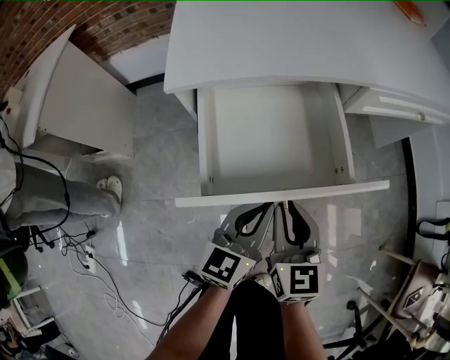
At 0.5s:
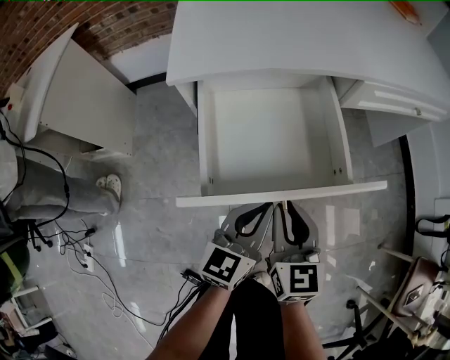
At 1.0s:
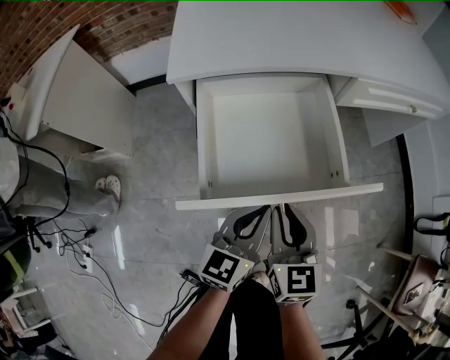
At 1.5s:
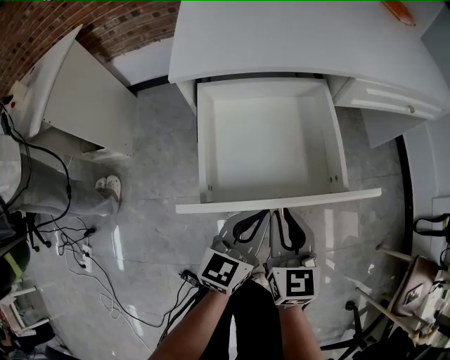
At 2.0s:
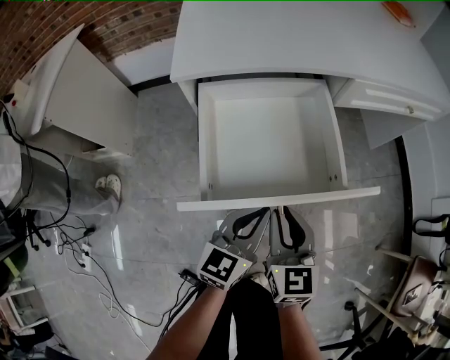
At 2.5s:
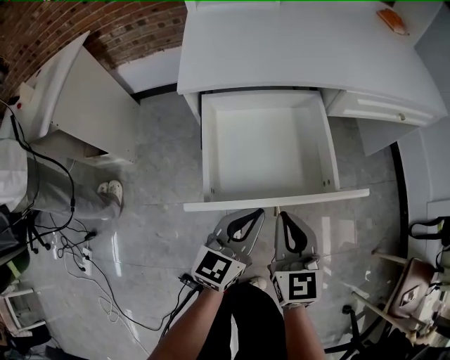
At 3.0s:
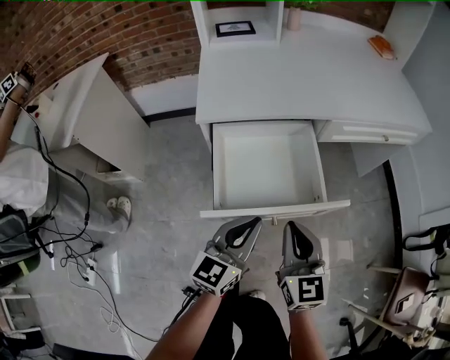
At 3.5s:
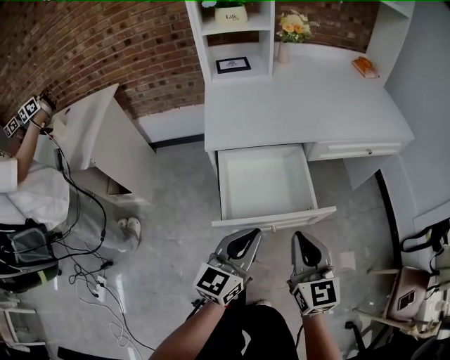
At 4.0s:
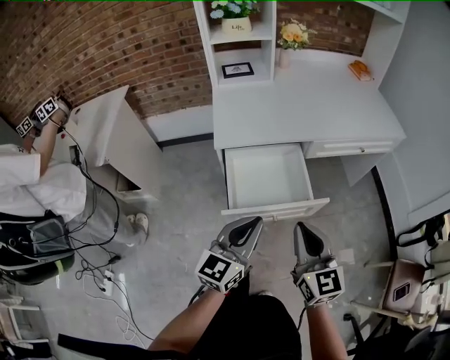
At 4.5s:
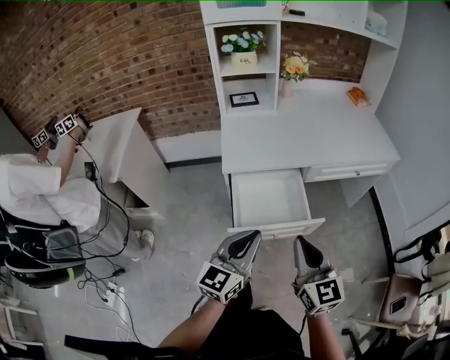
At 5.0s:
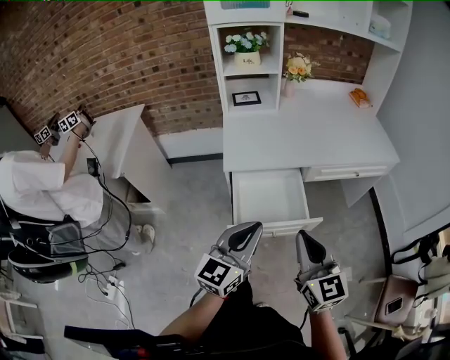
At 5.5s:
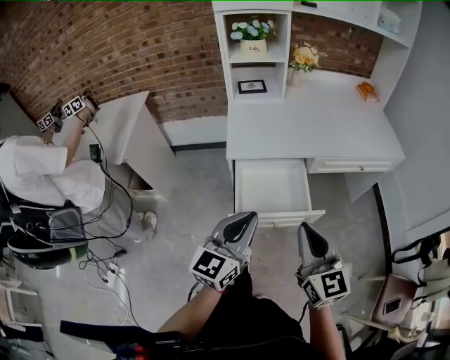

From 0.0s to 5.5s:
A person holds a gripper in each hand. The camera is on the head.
From 0.0s to 2.0s: The left gripper changes place by some 5 cm. Meanwhile the right gripper goes roughly 5 cm backward.
From 2.0s to 3.5s: Both grippers travel together upward, about 20 cm.
From 3.5s to 5.5s: The grippers both shift upward by approximately 15 cm.

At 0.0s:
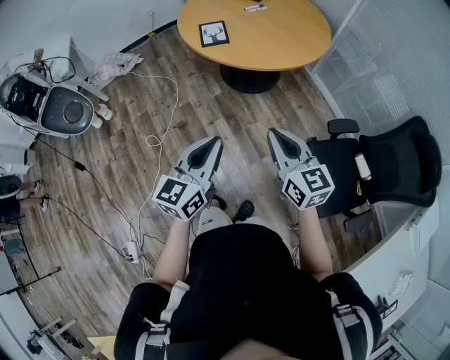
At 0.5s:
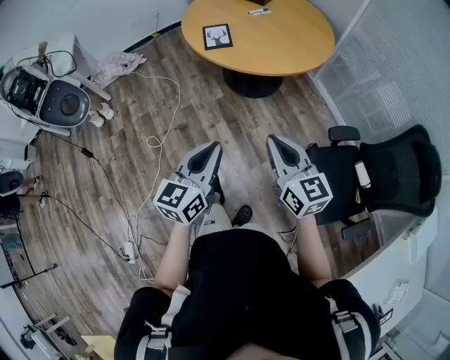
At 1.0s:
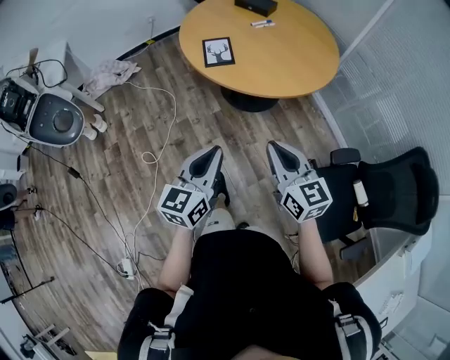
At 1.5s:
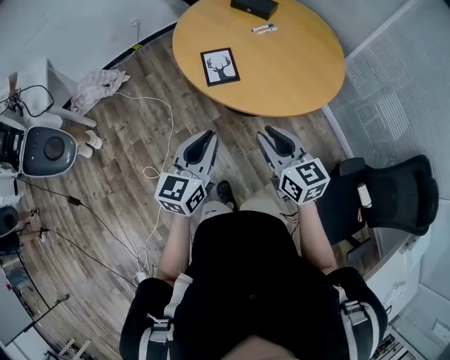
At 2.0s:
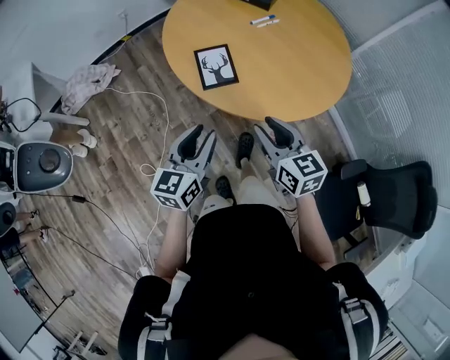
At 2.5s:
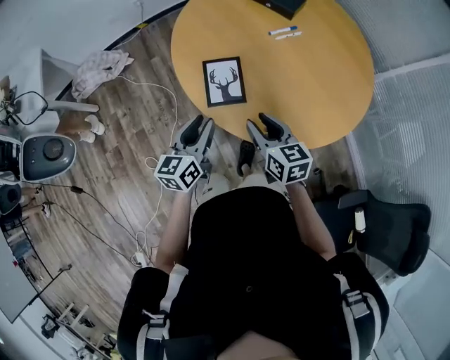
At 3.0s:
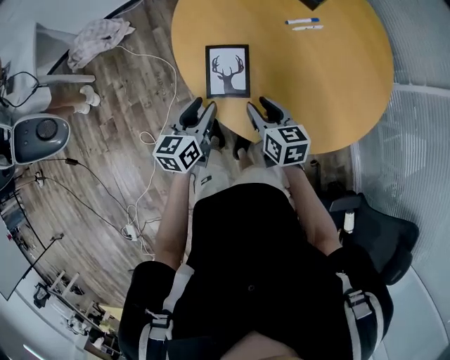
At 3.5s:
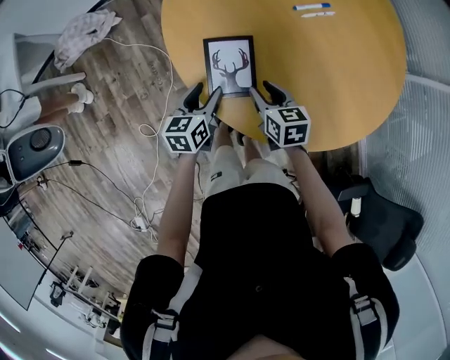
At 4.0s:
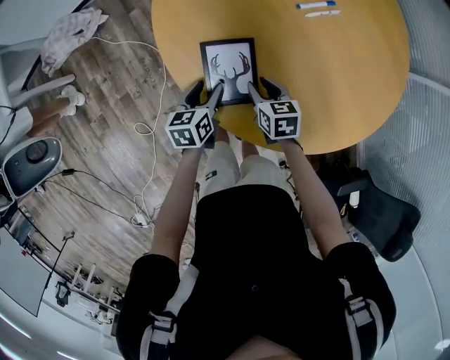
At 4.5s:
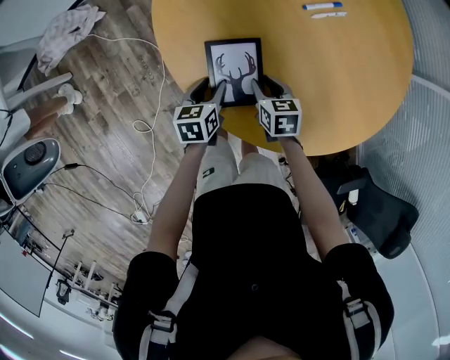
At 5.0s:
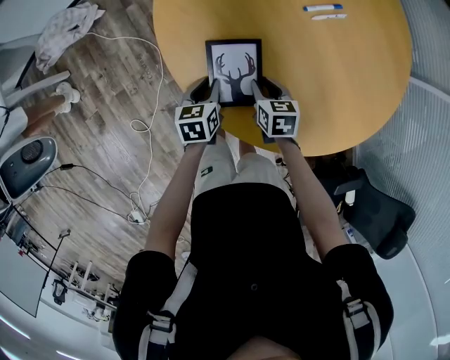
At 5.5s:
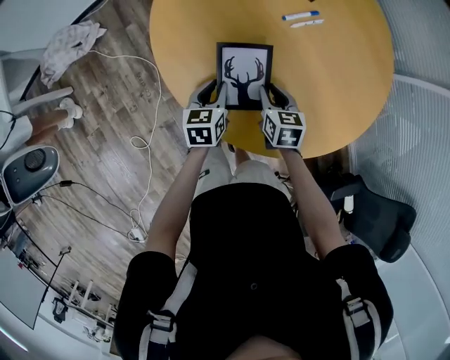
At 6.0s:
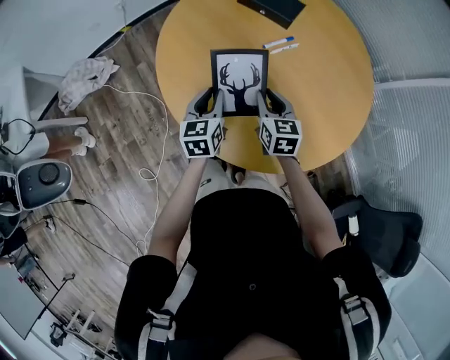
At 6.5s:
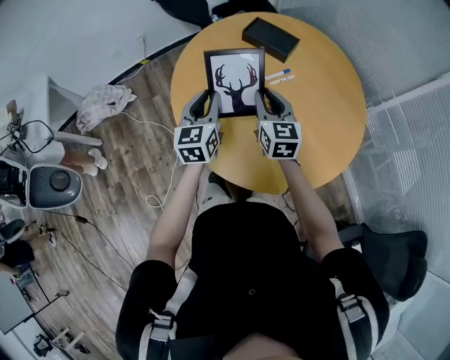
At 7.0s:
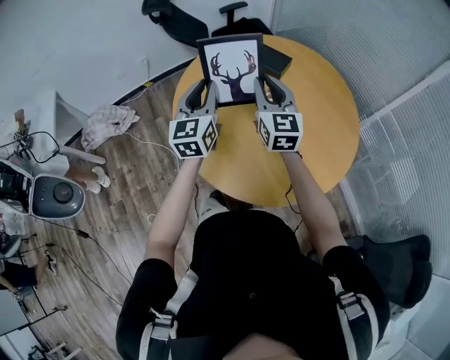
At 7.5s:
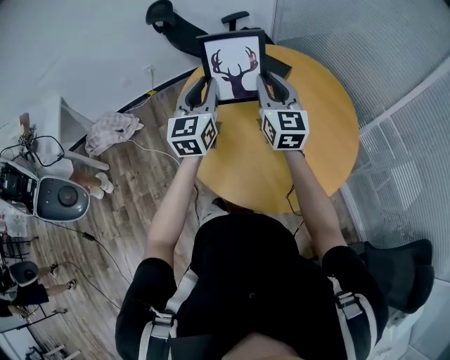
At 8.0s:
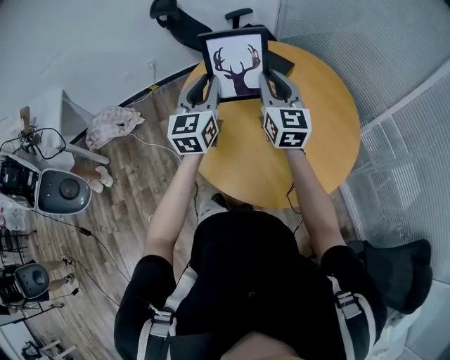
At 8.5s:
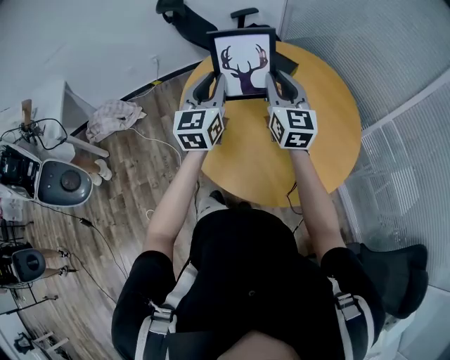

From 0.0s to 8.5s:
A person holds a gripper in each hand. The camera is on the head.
From 0.0s to 2.0s: Both grippers are carried forward, about 50 cm. The right gripper opens its fingers; the left gripper opens.
From 2.0s to 4.0s: Both grippers move forward and downward, some 50 cm. The right gripper turns by roughly 30 degrees. The left gripper rotates some 30 degrees, and opens up.
From 4.0s to 6.5s: Both grippers move upward, some 30 cm. The left gripper swivels some 40 degrees, and closes its fingers, while the right gripper angles its fingers upward, by approximately 40 degrees.
From 6.5s to 8.5s: The two grippers go roughly 15 cm upward.

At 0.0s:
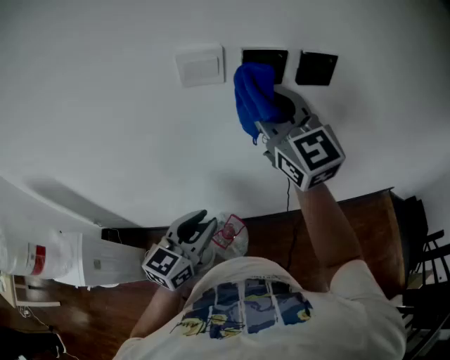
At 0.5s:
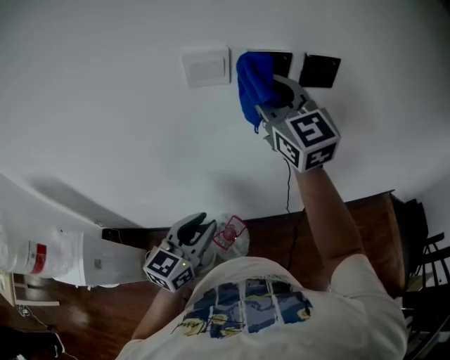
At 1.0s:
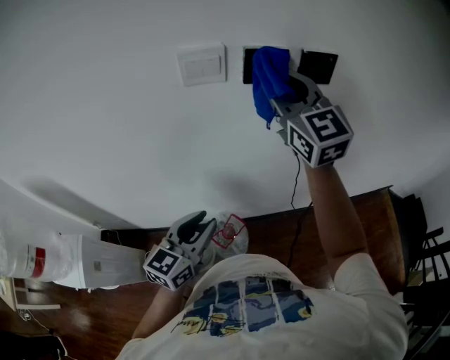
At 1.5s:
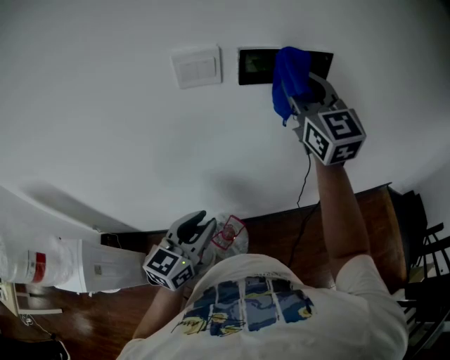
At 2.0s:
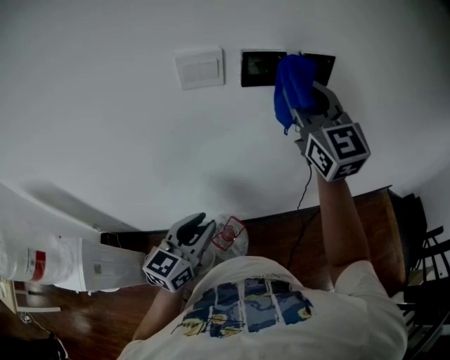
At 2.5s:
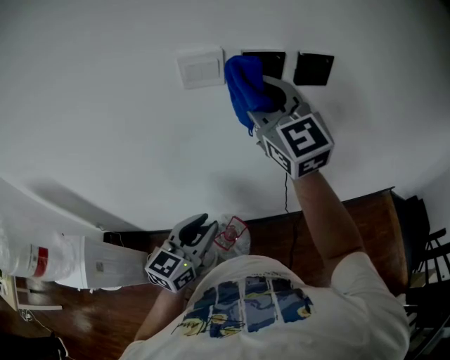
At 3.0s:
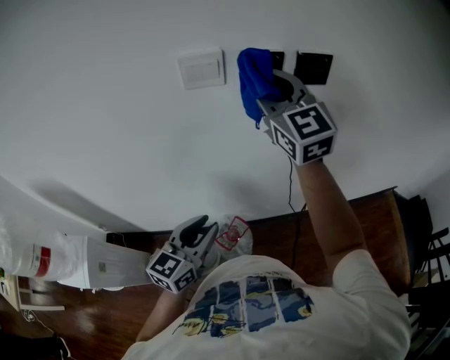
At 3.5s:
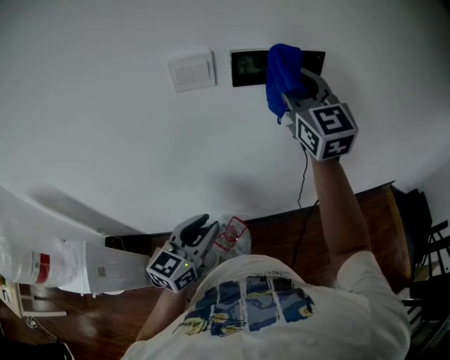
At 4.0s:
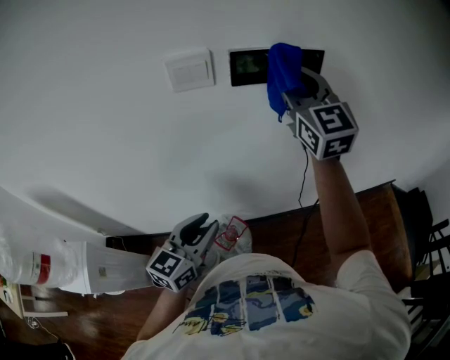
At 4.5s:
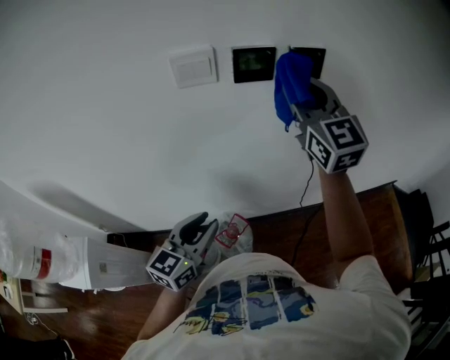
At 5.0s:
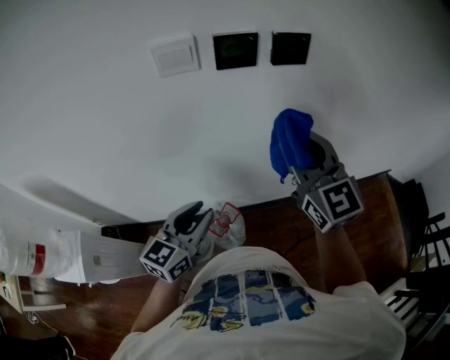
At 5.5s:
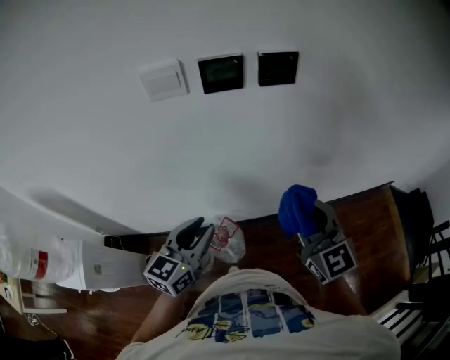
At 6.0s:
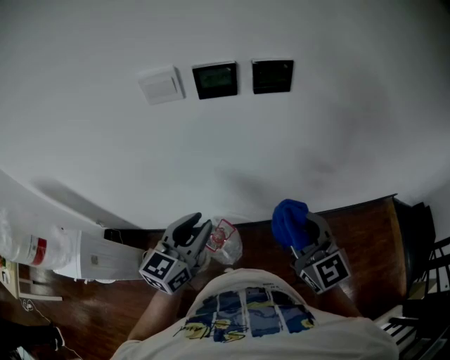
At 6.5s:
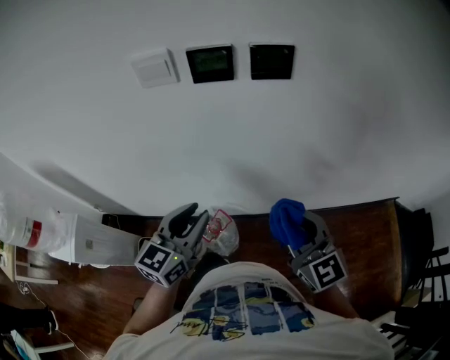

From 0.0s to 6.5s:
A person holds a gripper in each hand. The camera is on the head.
From 0.0s to 2.0s: The right gripper shifts approximately 10 cm to the right.
From 2.0s to 4.5s: The right gripper reaches roughly 10 cm to the left, then returns.
From 4.5s to 6.5s: The right gripper is displaced backward, downward and to the right by some 30 cm, and turns by about 20 degrees. Meanwhile the left gripper travels to the right by some 10 cm.

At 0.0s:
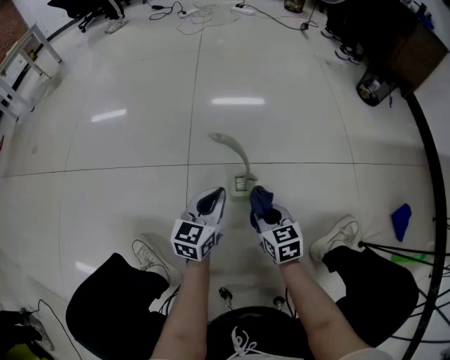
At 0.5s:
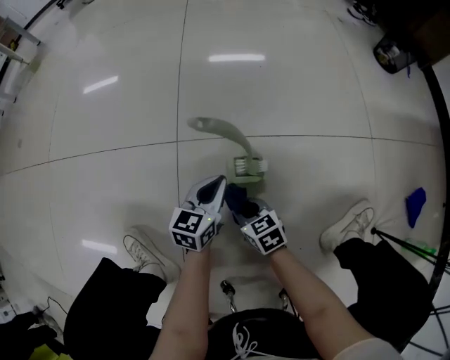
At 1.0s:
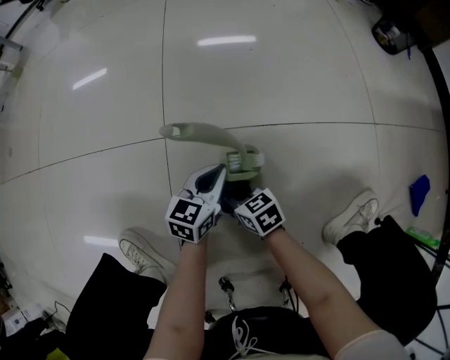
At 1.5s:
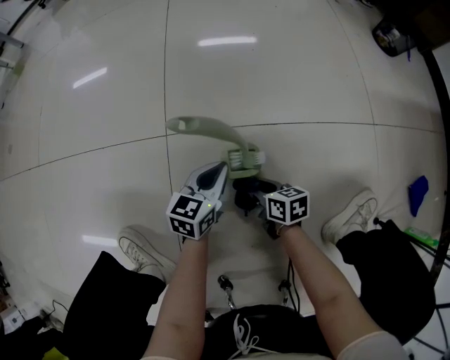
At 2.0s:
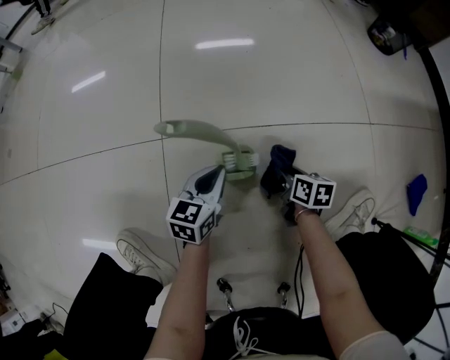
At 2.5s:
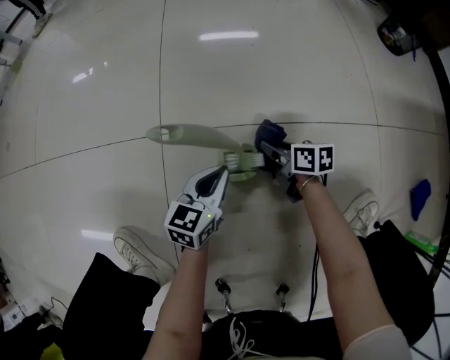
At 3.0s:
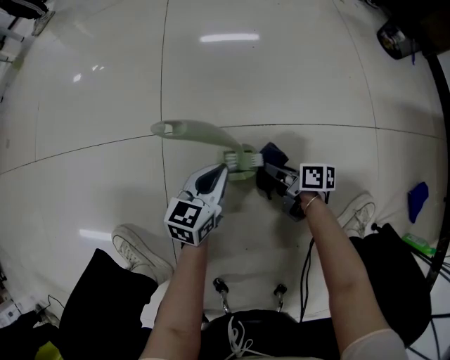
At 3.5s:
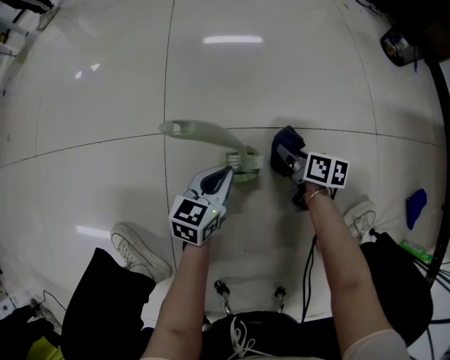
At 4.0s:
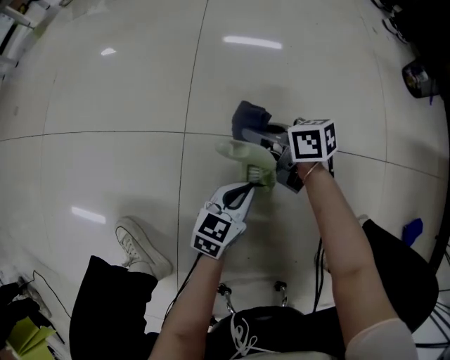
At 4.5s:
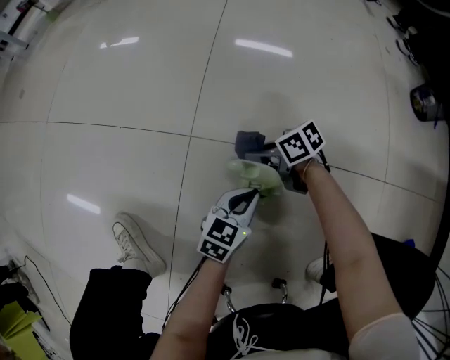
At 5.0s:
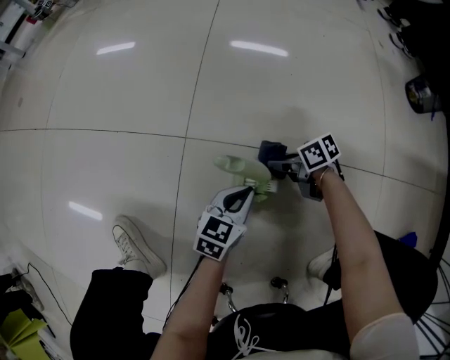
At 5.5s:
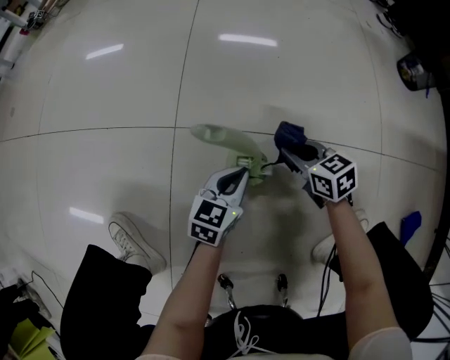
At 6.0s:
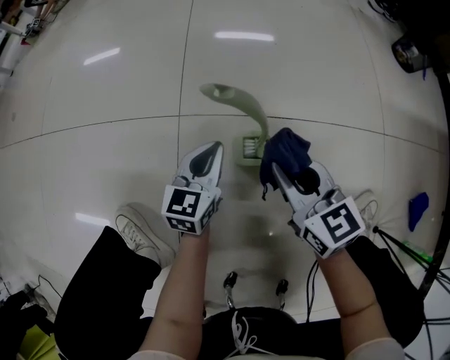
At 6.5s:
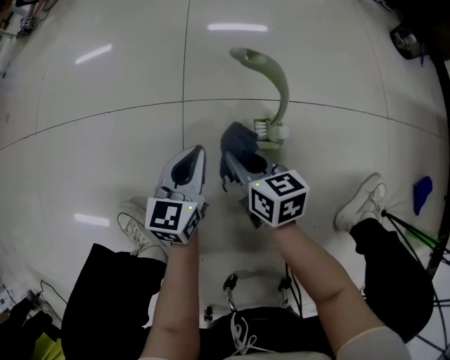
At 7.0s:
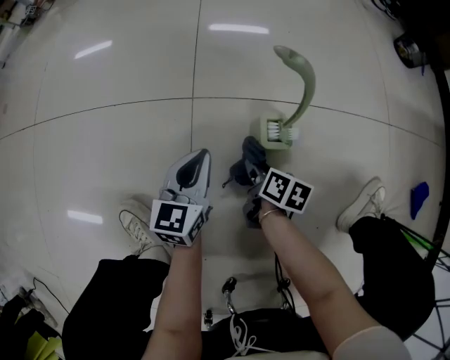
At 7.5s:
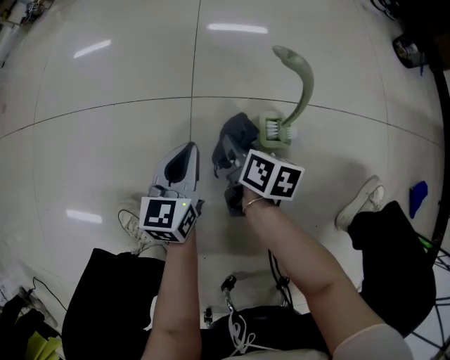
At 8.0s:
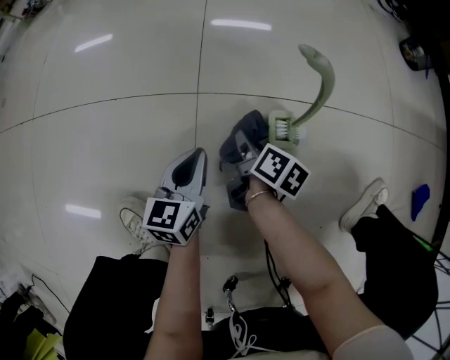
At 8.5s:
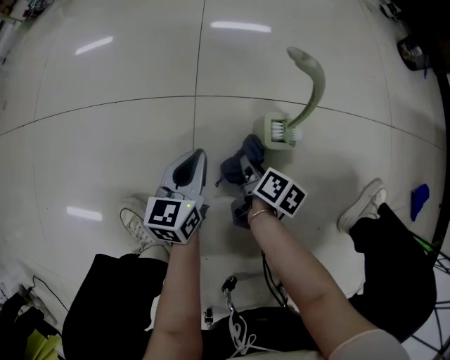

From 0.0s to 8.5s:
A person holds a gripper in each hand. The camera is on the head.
From 0.0s to 2.0s: The right gripper heads downward, to the right and forward, covering about 20 cm, and turns by approximately 40 degrees. Meanwhile the left gripper is displaced downward and forward by about 15 cm.
From 2.0s to 4.0s: The right gripper swings left and right, approximately 20 cm each way, with 2 reversals, and changes its angle by about 50 degrees.
From 4.0s to 6.5s: The left gripper ends up roughly 15 cm from where it was, while the right gripper swings up and down, approximately 20 cm each way, with 2 reversals, and changes its angle by approximately 30 degrees.
From 6.5s to 8.5s: The right gripper goes up and down, approximately 10 cm each way, reversing 2 times, and twists approximately 40 degrees clockwise, seen from behind.
